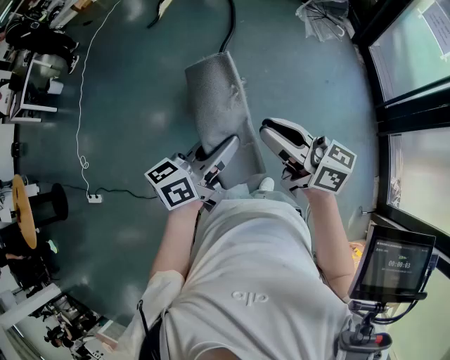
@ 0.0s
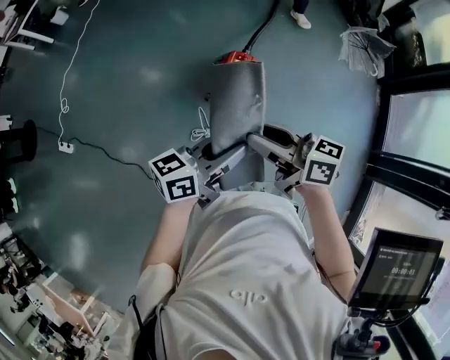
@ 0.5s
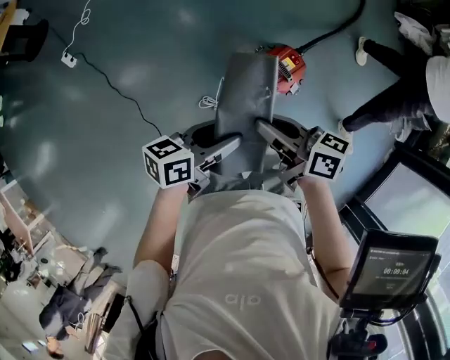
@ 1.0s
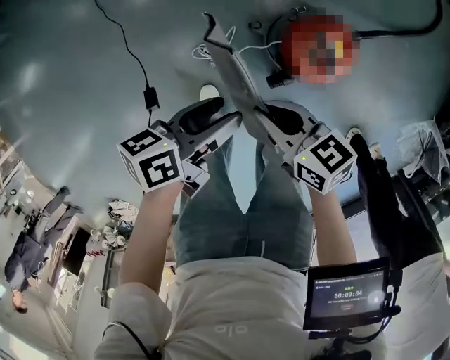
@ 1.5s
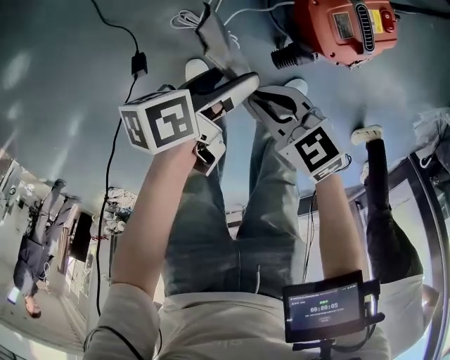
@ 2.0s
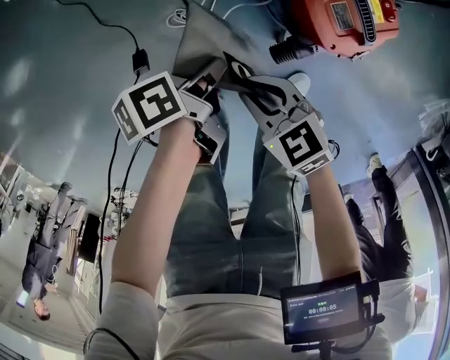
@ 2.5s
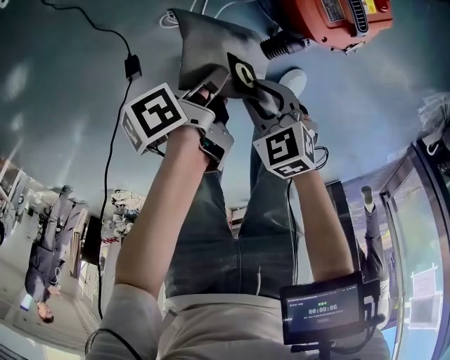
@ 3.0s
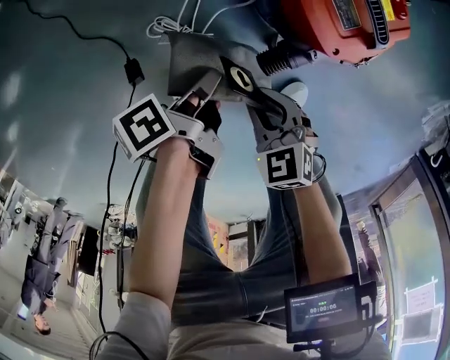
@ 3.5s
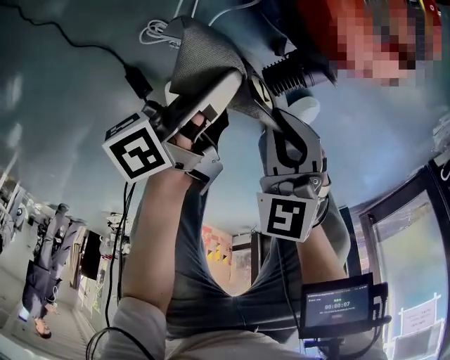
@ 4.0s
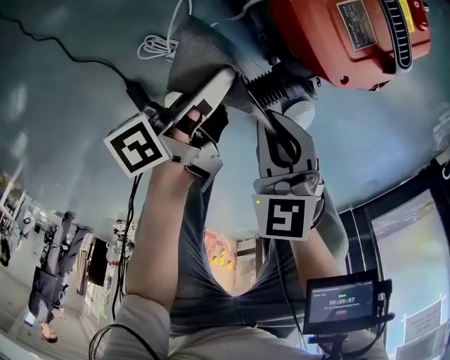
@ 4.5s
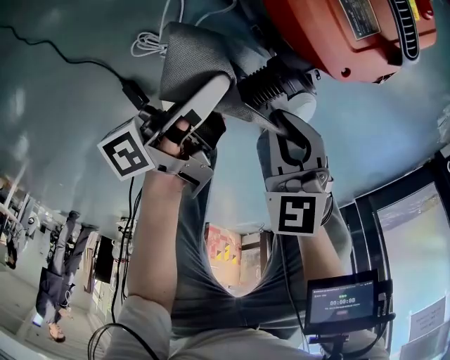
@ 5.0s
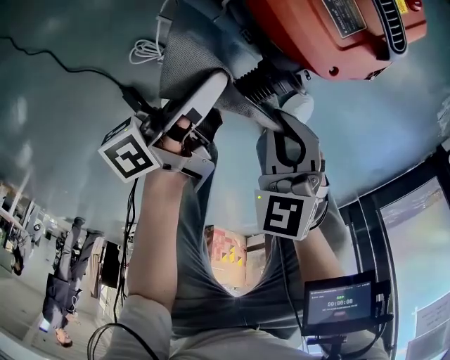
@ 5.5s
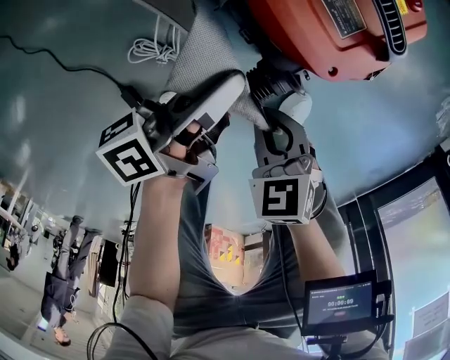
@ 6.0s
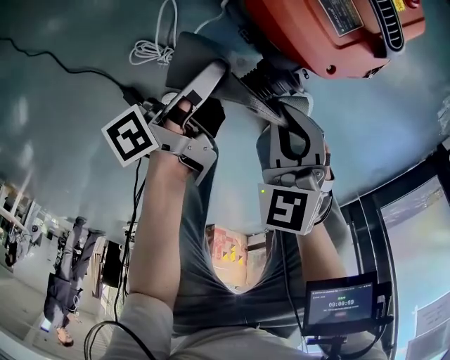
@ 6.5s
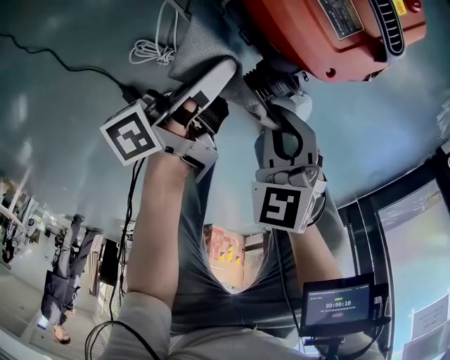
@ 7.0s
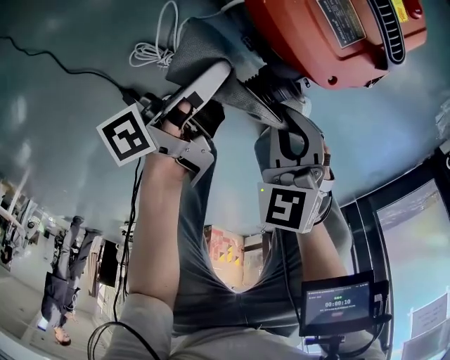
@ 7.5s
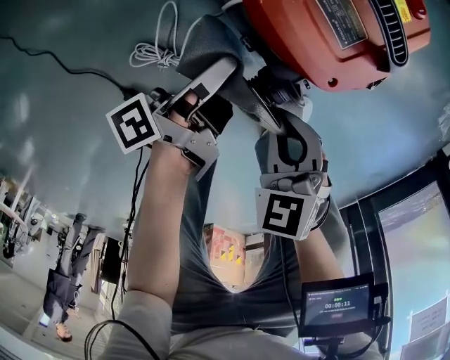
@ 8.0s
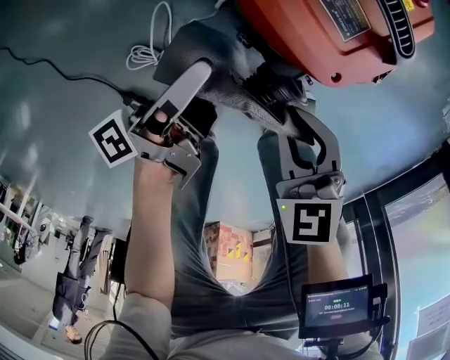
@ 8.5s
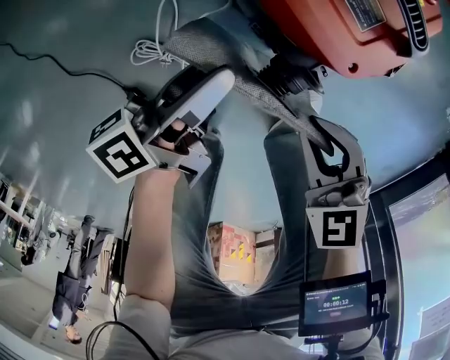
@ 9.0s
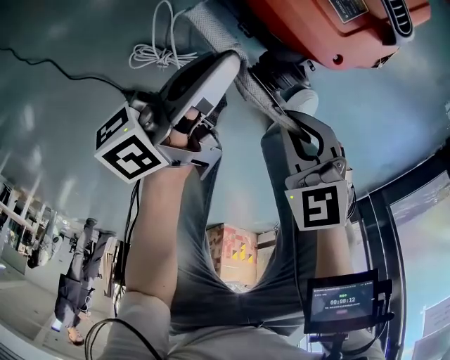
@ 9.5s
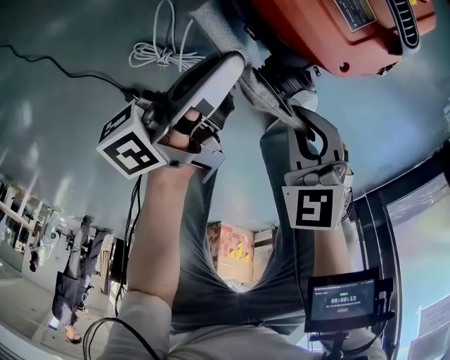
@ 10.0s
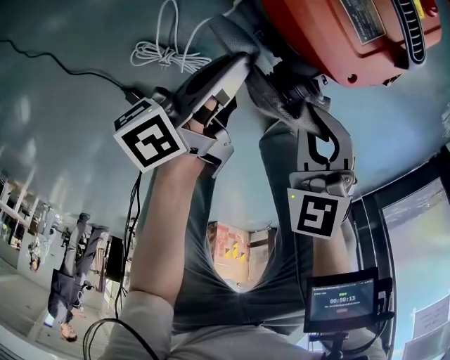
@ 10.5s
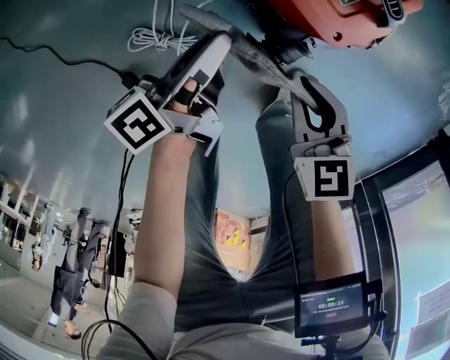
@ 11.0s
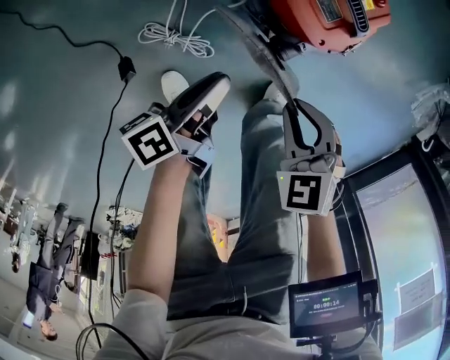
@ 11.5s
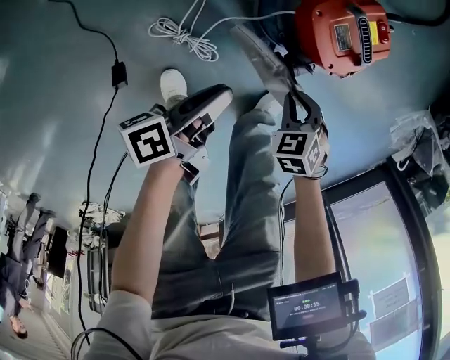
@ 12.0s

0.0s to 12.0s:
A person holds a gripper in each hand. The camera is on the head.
0.0s to 2.0s: The right gripper is displaced downward by roughly 60 cm, and points its fingers roughly 40 degrees further downward.
2.0s to 4.0s: The right gripper goes about 10 cm downward, and swivels some 40 degrees.
10.0s to 12.0s: The right gripper moves roughly 10 cm upward and comes back, and rotates approximately 30 degrees.

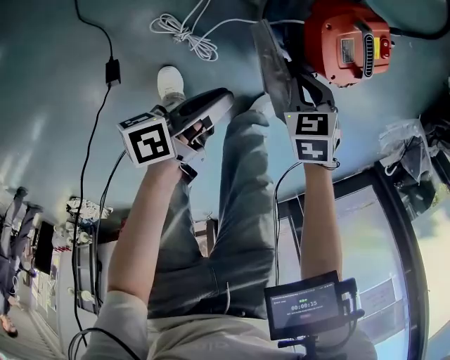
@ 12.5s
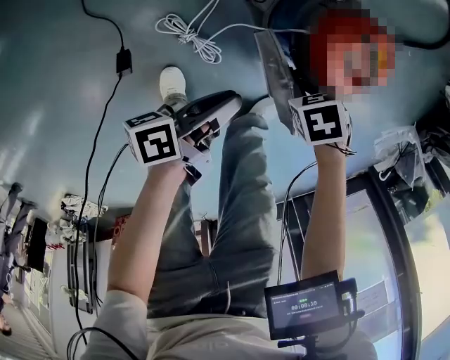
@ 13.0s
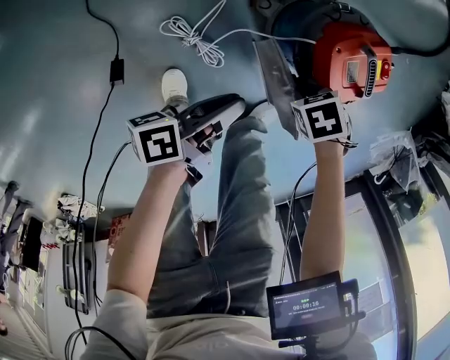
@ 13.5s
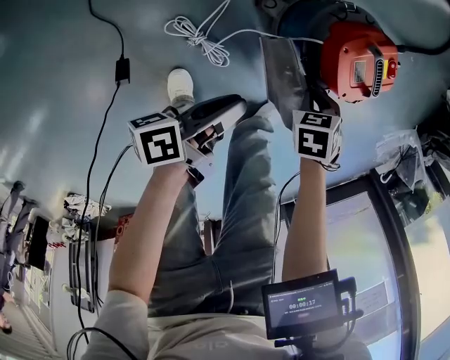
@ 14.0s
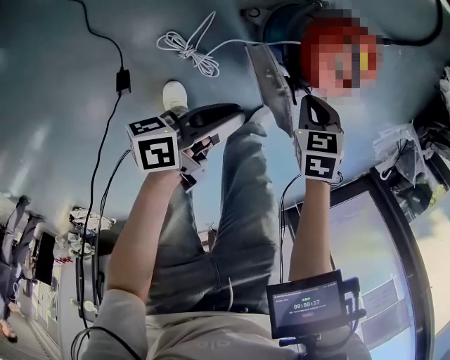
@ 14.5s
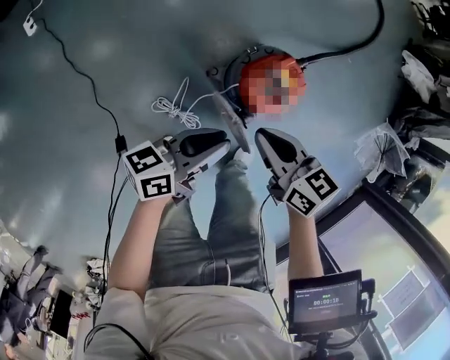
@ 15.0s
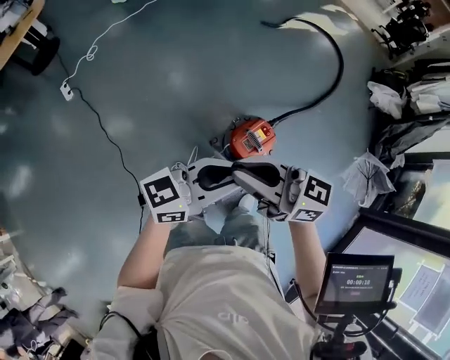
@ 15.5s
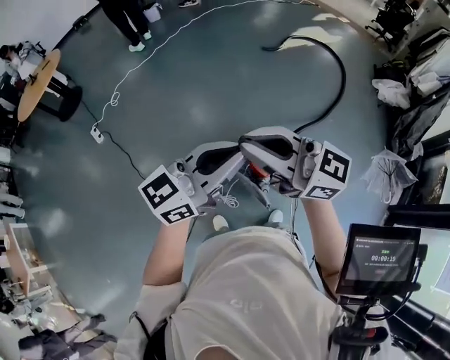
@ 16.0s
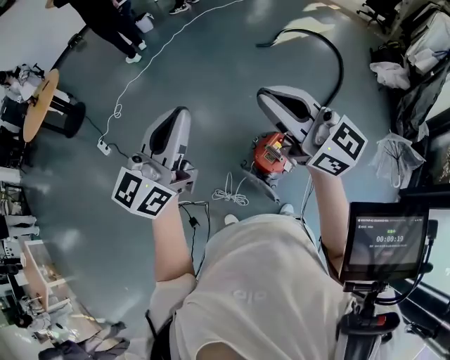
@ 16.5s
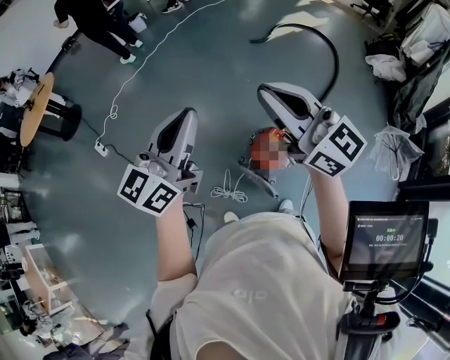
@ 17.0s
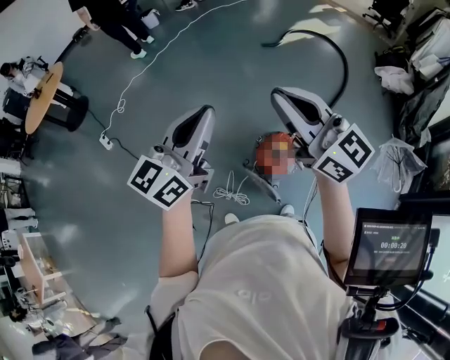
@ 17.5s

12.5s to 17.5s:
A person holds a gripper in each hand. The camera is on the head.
12.5s to 15.0s: The right gripper travels upward by about 30 cm, and tips its fingers upward by roughly 50 degrees.
15.0s to 17.5s: The right gripper shifts some 60 cm upward, and tilts its fingers approximately 40 degrees upward.

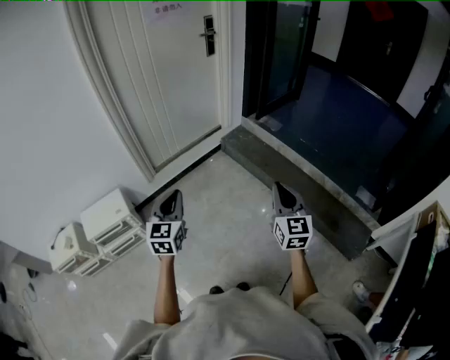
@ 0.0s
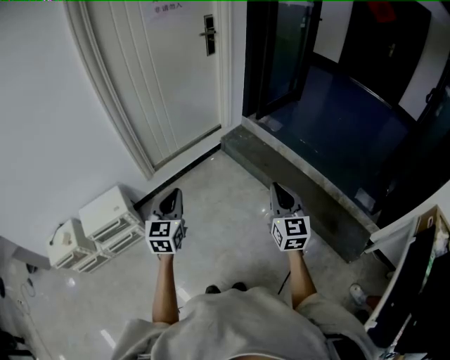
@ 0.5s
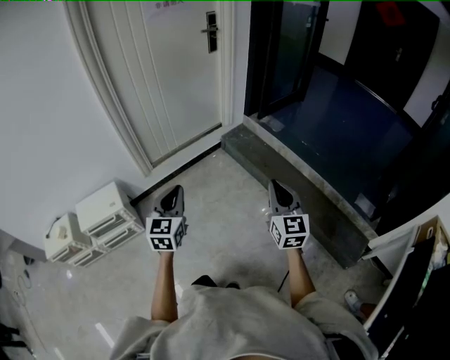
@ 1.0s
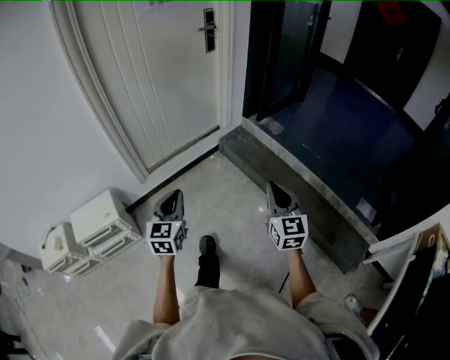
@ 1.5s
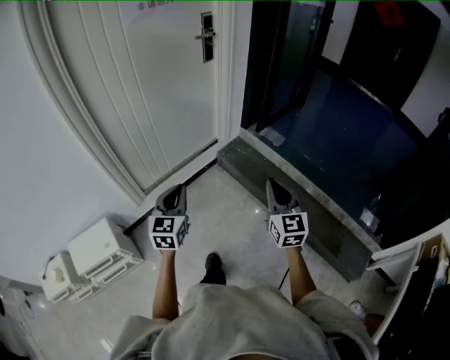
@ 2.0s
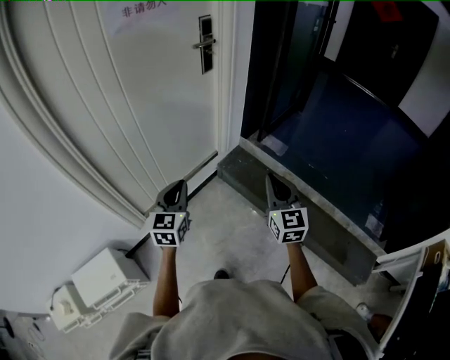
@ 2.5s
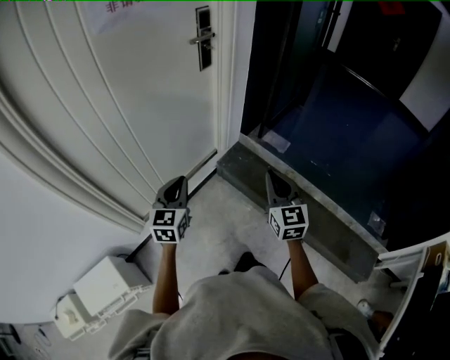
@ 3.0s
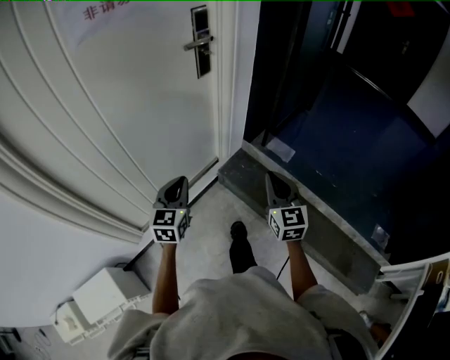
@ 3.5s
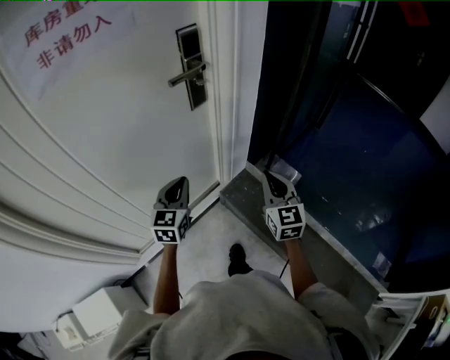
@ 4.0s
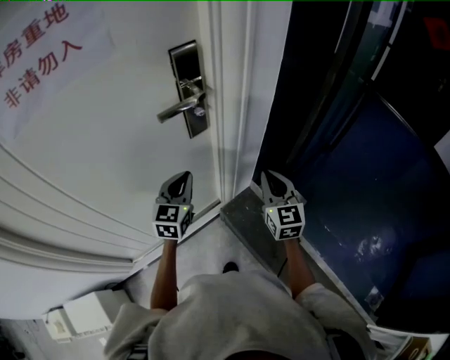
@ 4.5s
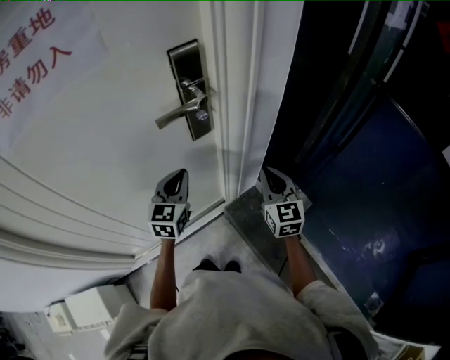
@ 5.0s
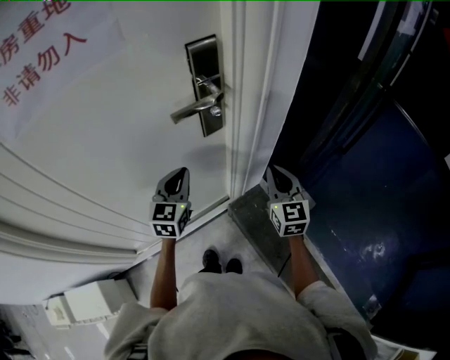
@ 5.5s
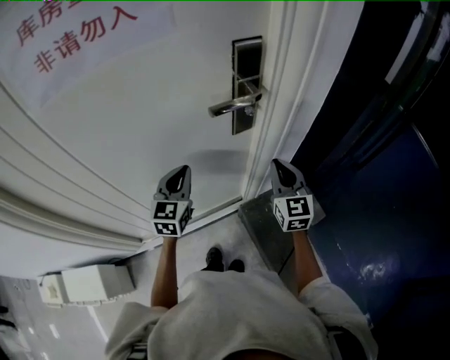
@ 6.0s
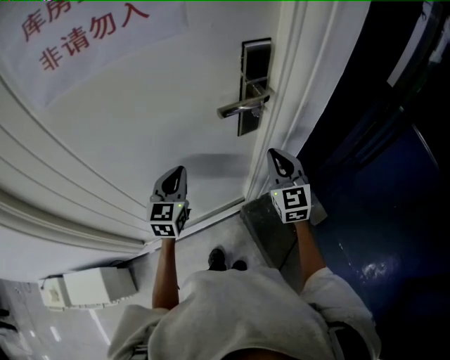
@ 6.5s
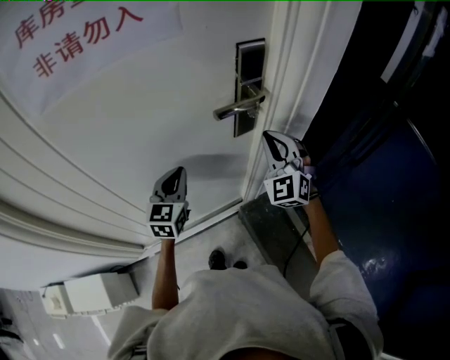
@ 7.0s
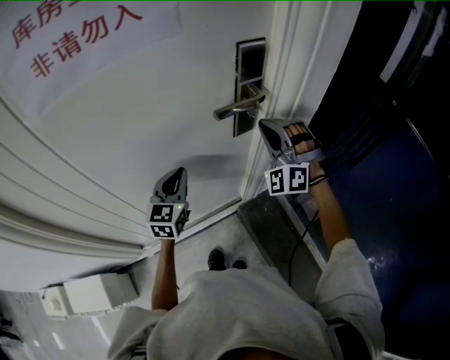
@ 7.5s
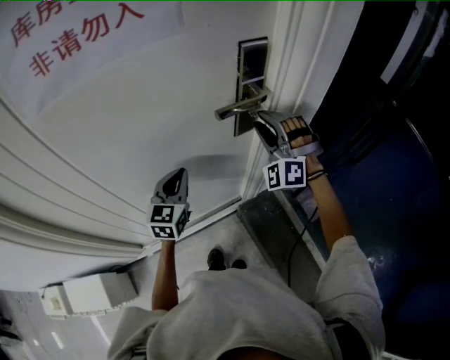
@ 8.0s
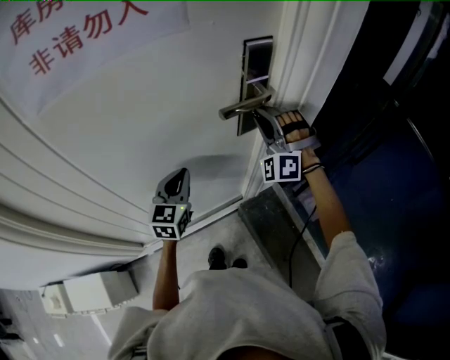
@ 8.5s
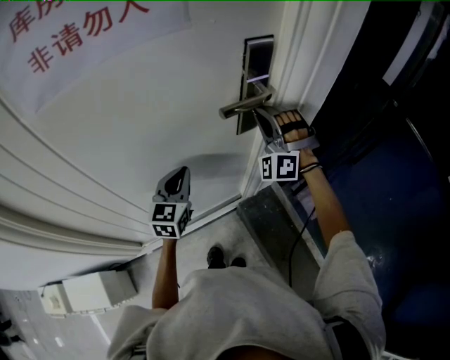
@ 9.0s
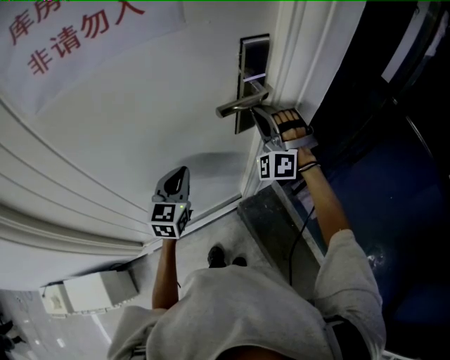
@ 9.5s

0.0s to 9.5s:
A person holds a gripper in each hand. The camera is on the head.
0.0s to 2.0s: The two grippers go some 30 cm forward.
2.0s to 4.0s: Both grippers are carried forward, some 60 cm.
4.0s to 5.5s: The two grippers go about 20 cm forward.
5.5s to 7.5s: The right gripper shifts roughly 20 cm to the left, forward and upward, and rotates around the line of its fingers by about 70 degrees, counterclockwise from behind. Meanwhile the left gripper travels to the left by roughly 10 cm.
7.5s to 9.5s: The right gripper opens, then closes once more.

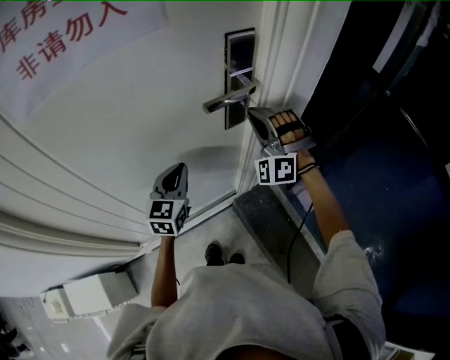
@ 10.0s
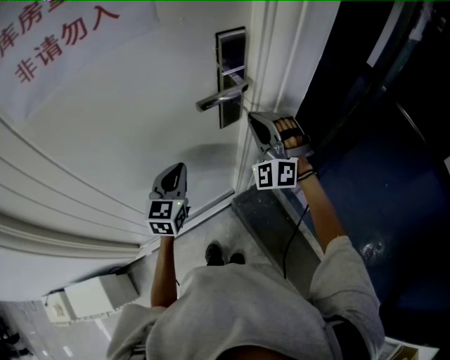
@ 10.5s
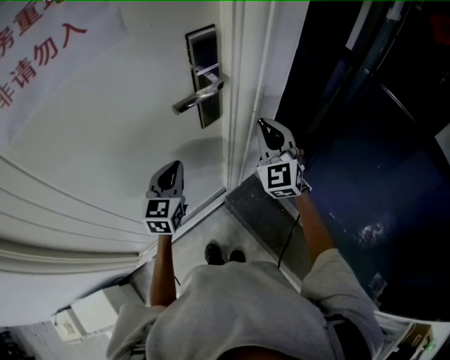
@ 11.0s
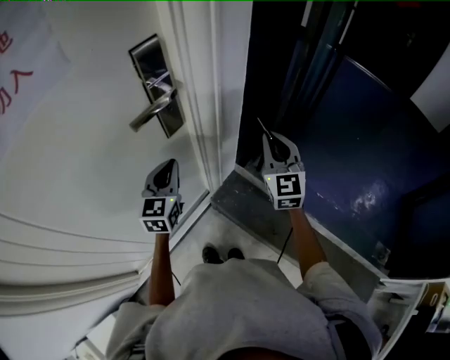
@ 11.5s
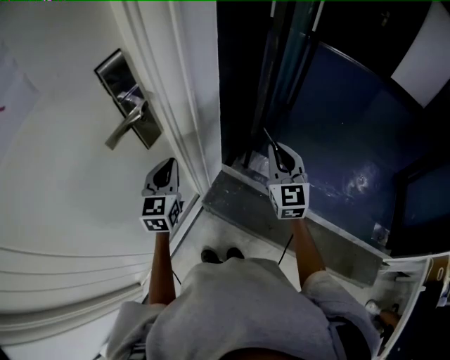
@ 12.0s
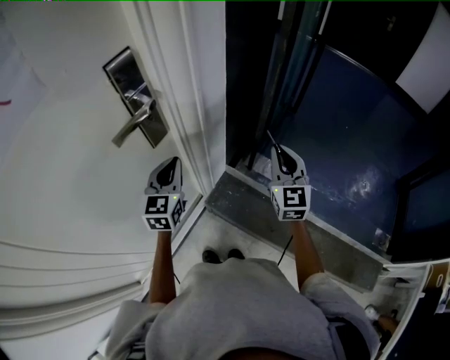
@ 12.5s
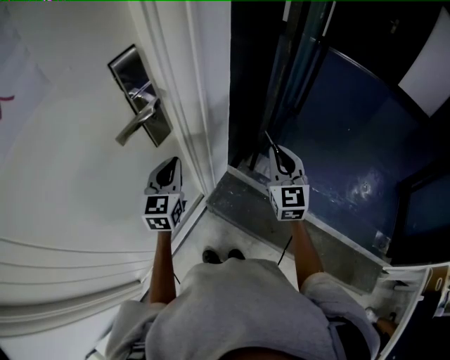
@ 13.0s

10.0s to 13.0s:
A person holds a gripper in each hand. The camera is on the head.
10.0s to 11.5s: The right gripper shifts roughly 25 cm to the right and backward, and twists about 70 degrees clockwise, seen from behind. Meanwhile the left gripper goes about 10 cm to the right.
11.5s to 13.0s: The right gripper is displaced to the right by roughly 5 cm.
